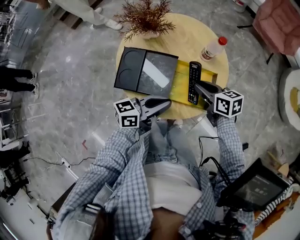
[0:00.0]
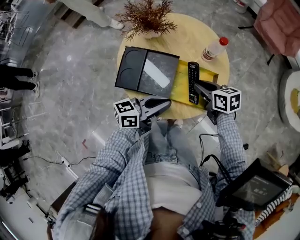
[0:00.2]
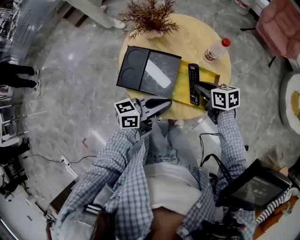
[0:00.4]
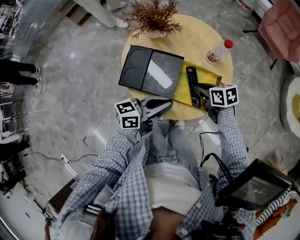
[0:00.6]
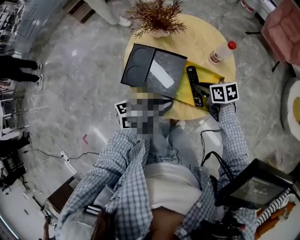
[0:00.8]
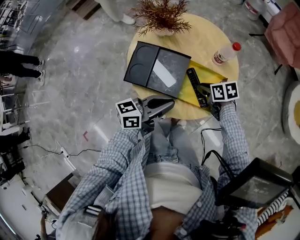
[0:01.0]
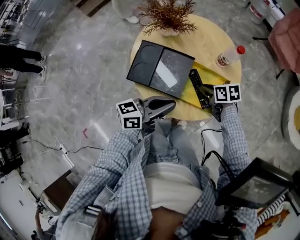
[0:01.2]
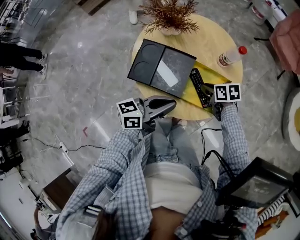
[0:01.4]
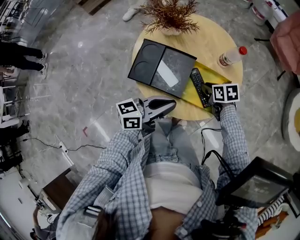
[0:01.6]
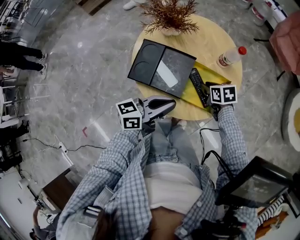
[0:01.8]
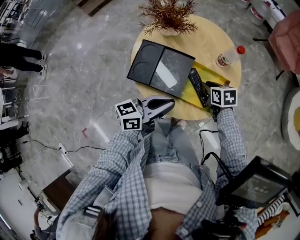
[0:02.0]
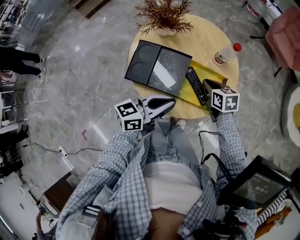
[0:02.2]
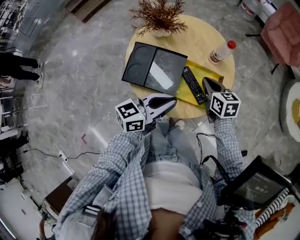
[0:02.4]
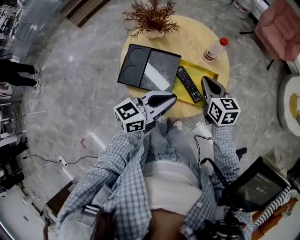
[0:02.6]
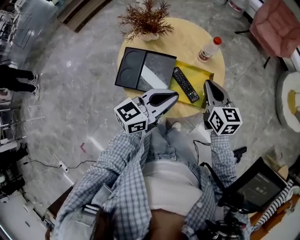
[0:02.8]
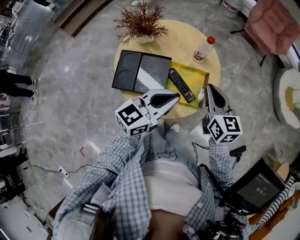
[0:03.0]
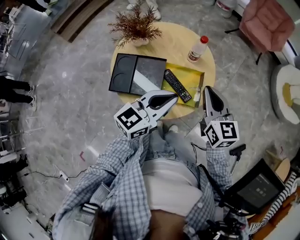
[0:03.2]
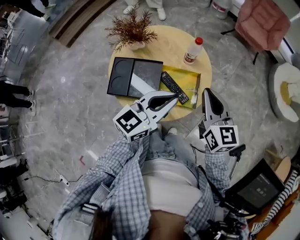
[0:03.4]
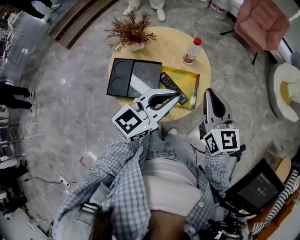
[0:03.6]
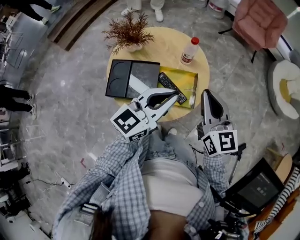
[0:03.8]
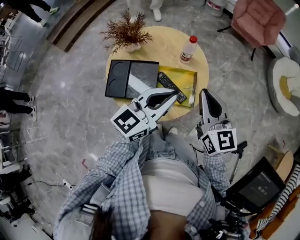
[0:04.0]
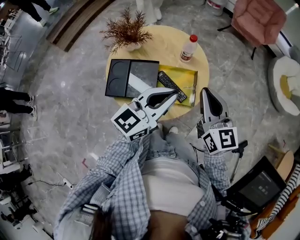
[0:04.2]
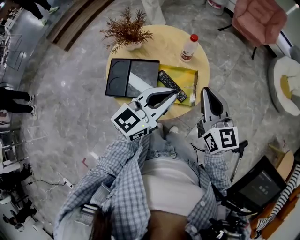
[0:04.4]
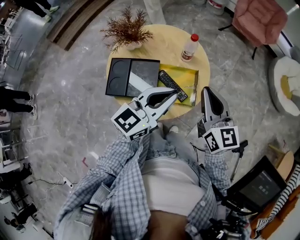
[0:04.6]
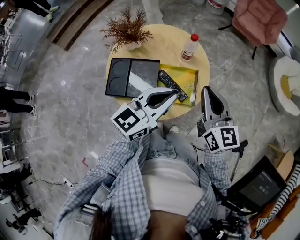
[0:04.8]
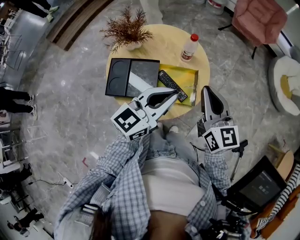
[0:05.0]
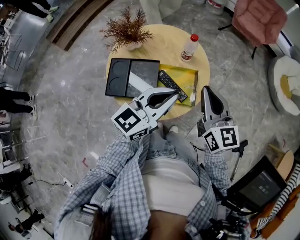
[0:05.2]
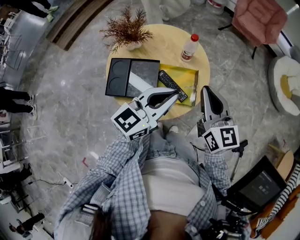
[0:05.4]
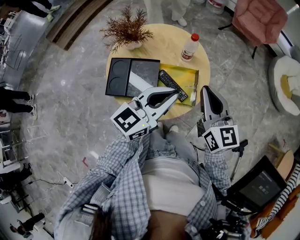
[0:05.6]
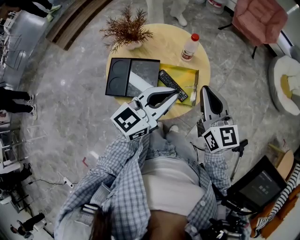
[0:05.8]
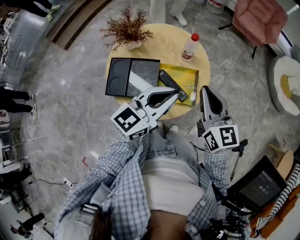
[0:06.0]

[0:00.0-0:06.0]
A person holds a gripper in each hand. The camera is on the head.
0.0 to 1.6 s: The right gripper shifts approximately 10 cm downward, and turns by approximately 20 degrees.
1.6 to 3.0 s: The left gripper shifts roughly 10 cm upward, and changes its angle by approximately 30 degrees; the right gripper heads upward, covering about 20 cm, angles its fingers upward, by roughly 30 degrees, and closes.
3.0 to 4.4 s: The right gripper travels upward by about 5 cm.
4.4 to 6.0 s: The two grippers keep their place.

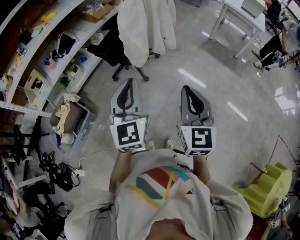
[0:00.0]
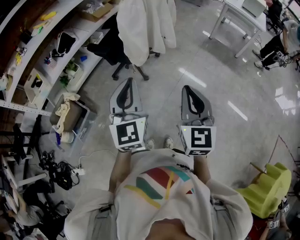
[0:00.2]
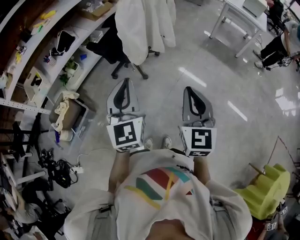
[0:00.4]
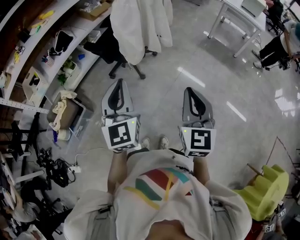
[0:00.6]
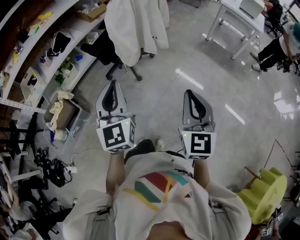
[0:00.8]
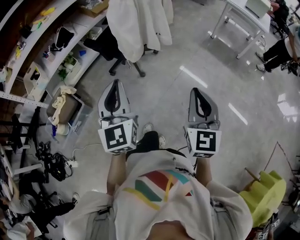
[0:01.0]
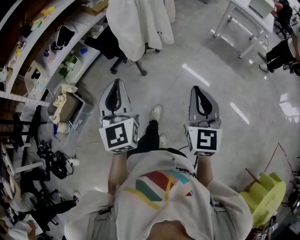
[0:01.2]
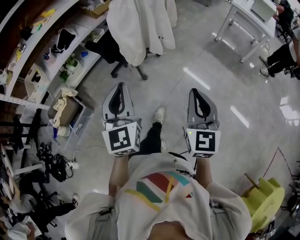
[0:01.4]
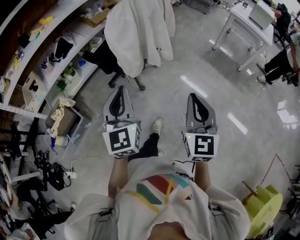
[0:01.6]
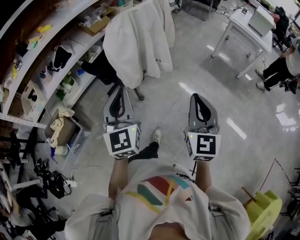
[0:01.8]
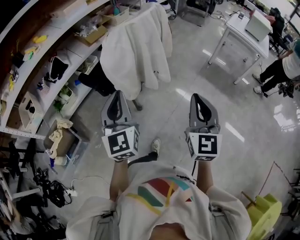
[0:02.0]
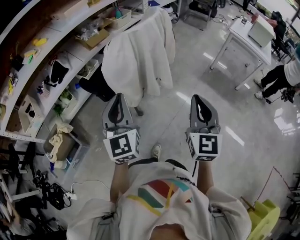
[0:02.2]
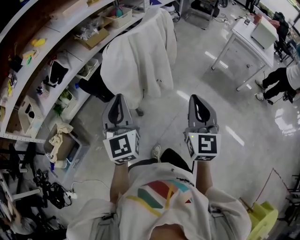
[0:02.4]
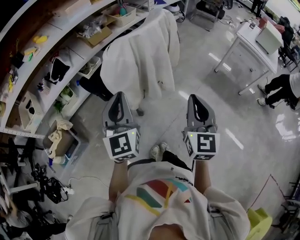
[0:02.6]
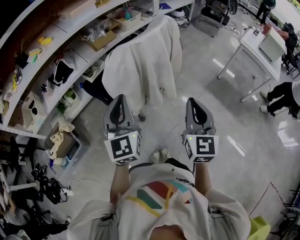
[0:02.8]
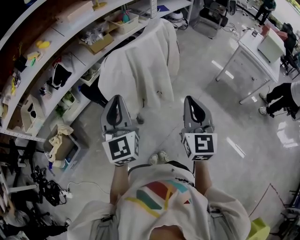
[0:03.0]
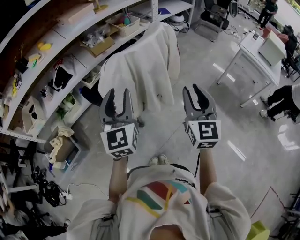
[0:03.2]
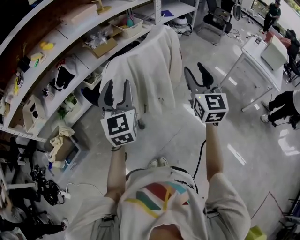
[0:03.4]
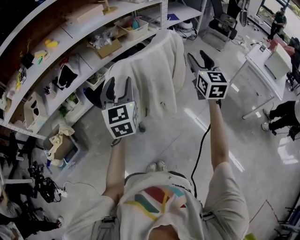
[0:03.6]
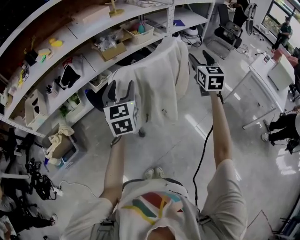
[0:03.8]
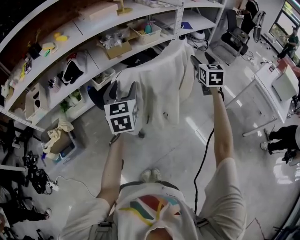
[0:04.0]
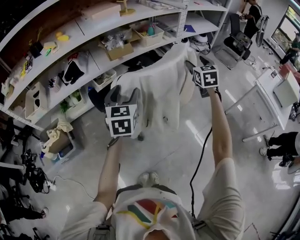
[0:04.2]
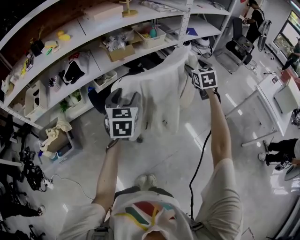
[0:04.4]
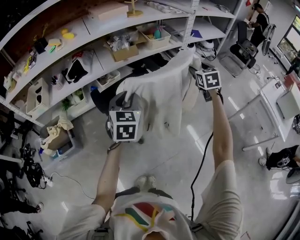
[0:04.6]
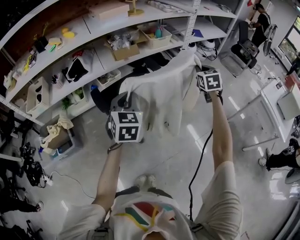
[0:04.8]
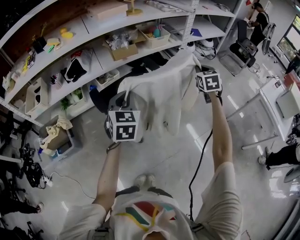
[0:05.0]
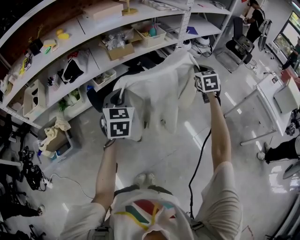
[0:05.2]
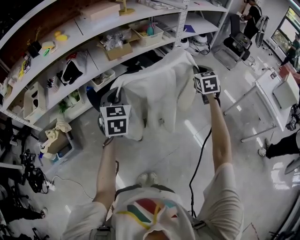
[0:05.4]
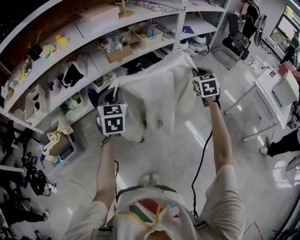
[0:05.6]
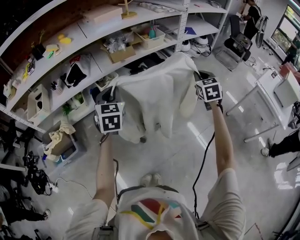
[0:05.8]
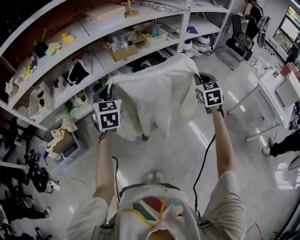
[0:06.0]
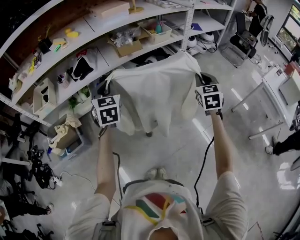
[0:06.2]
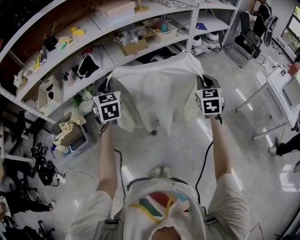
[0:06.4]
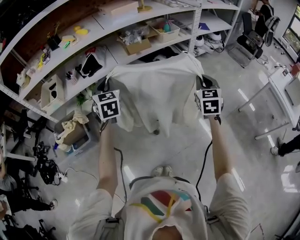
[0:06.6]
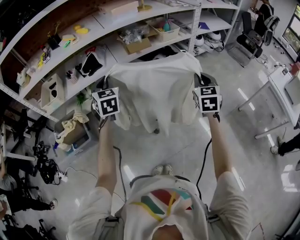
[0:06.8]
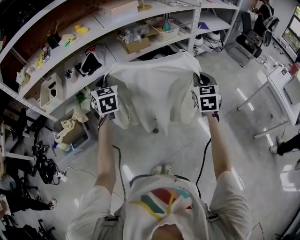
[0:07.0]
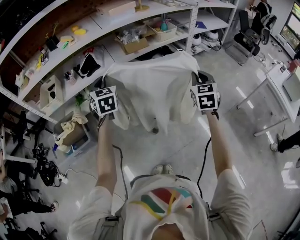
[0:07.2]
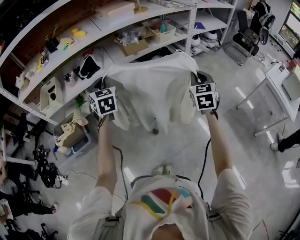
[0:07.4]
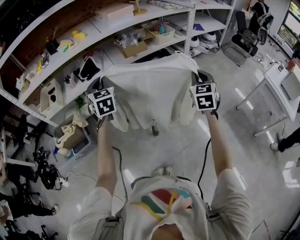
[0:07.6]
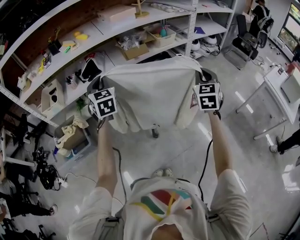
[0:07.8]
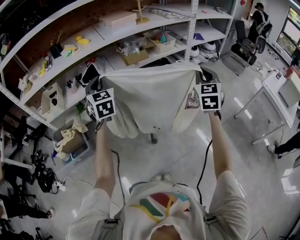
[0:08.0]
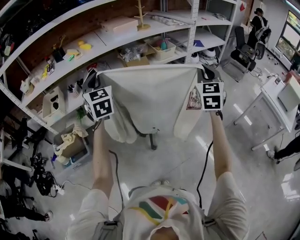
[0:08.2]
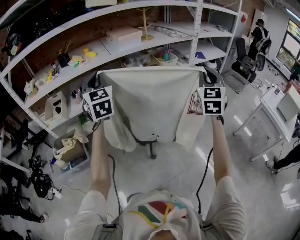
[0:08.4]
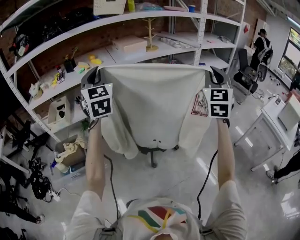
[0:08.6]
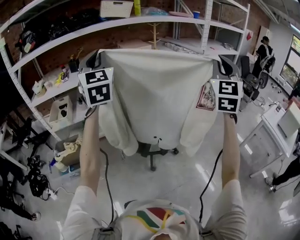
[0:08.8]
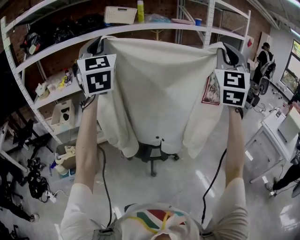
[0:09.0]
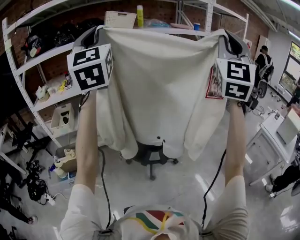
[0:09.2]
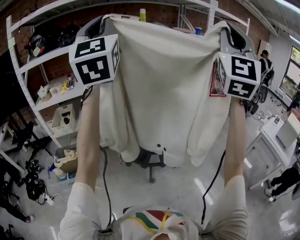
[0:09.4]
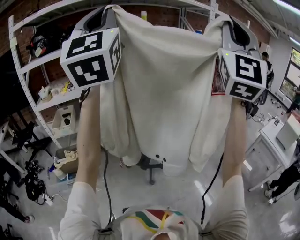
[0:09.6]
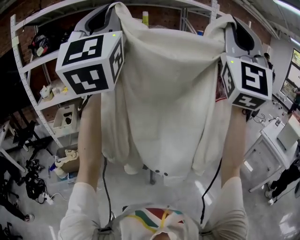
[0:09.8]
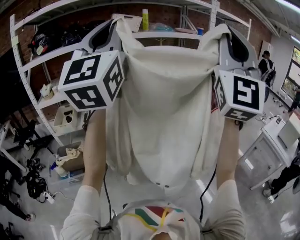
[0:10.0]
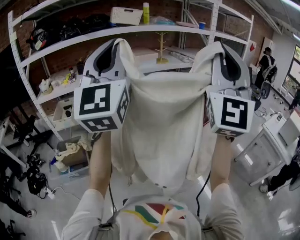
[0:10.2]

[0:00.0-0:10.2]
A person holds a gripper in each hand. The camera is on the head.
0.0 to 1.4 s: The right gripper is displaced to the right by some 10 cm. Meanwhile the left gripper moves to the right, approximately 5 cm.
1.4 to 3.0 s: The grippers both shift forward by approximately 30 cm.
3.0 to 4.4 s: The left gripper travels forward by some 20 cm, turns by some 30 degrees, and opens; the right gripper is displaced forward by roughly 40 cm, changes its angle by approximately 30 degrees, and opens its fingers.
4.4 to 5.8 s: The right gripper heads backward, covering approximately 5 cm, and closes; the left gripper goes about 5 cm to the left, and closes up.
5.8 to 7.2 s: The right gripper is displaced to the left and backward by about 15 cm; the left gripper goes roughly 15 cm to the left.
7.2 to 8.8 s: The grippers both shift upward by approximately 35 cm. The left gripper tilts its fingers some 30 degrees upward. Meanwhile the right gripper points its fingers roughly 40 degrees further upward.
8.8 to 10.2 s: The left gripper heads backward and upward, covering some 15 cm, and changes its angle by some 30 degrees. Meanwhile the right gripper moves backward, to the left and upward, roughly 20 cm, and turns by approximately 30 degrees.

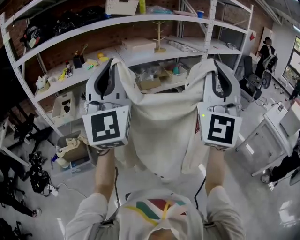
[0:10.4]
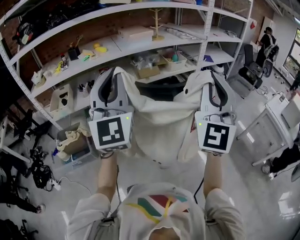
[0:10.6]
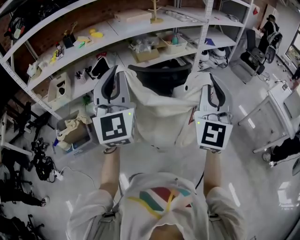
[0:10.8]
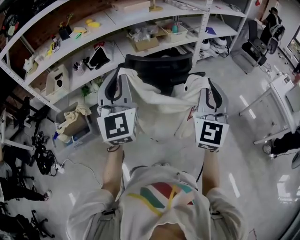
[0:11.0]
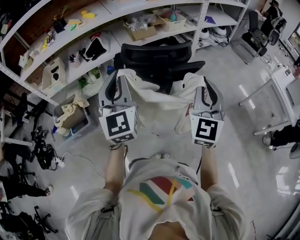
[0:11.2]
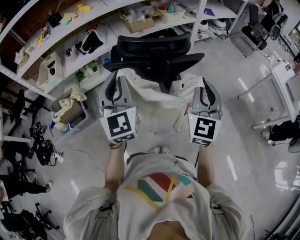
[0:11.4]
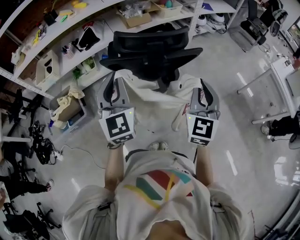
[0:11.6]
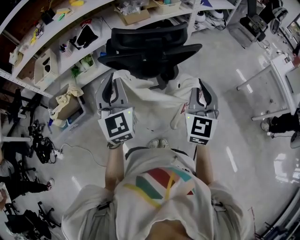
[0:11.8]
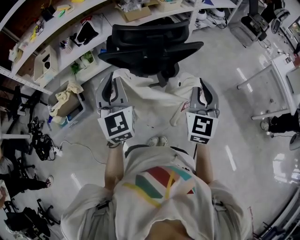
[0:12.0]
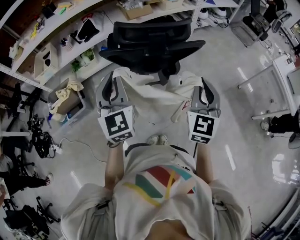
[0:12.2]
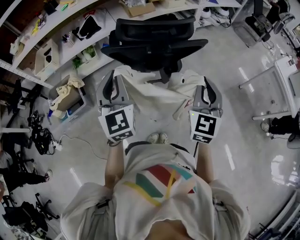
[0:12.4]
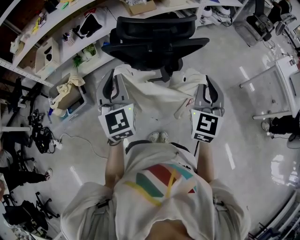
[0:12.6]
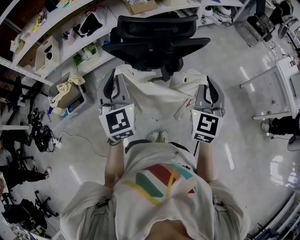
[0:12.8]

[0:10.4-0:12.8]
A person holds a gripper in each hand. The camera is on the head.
10.4 to 11.6 s: The grippers both shift downward by some 30 cm. The left gripper swivels some 30 degrees; the right gripper points its fingers some 40 degrees further downward.
11.6 to 12.8 s: There are only small adjustments of the grippers.

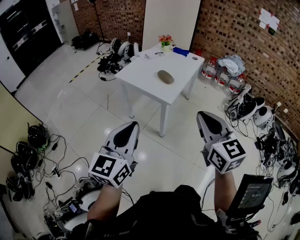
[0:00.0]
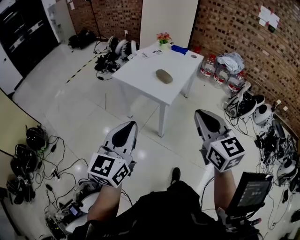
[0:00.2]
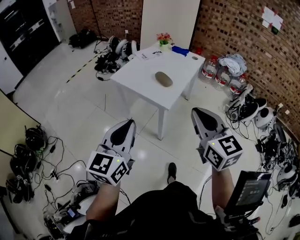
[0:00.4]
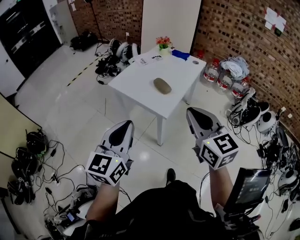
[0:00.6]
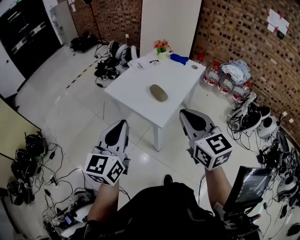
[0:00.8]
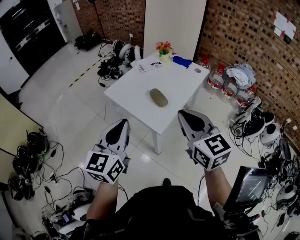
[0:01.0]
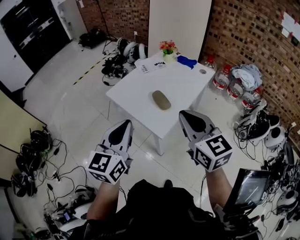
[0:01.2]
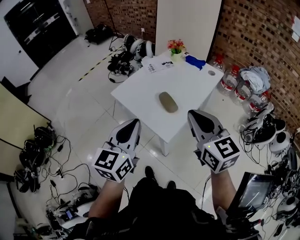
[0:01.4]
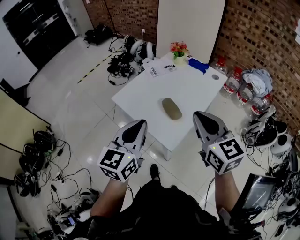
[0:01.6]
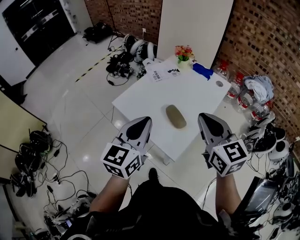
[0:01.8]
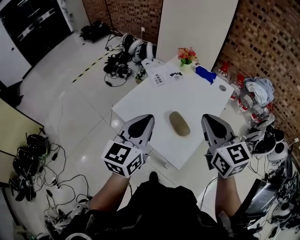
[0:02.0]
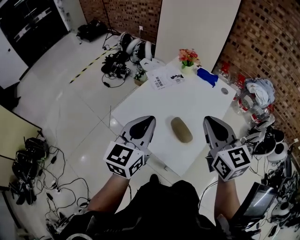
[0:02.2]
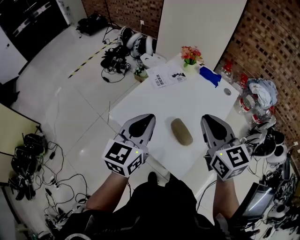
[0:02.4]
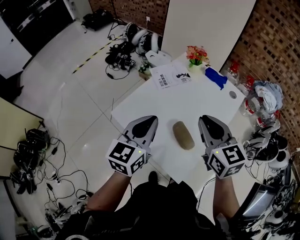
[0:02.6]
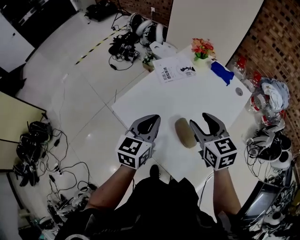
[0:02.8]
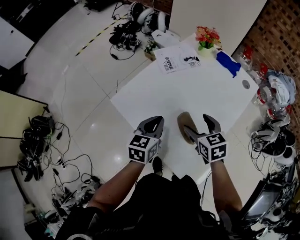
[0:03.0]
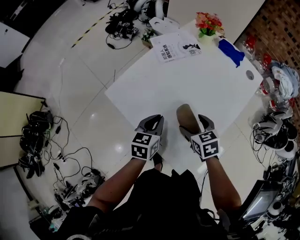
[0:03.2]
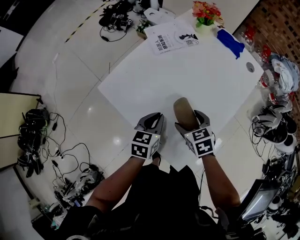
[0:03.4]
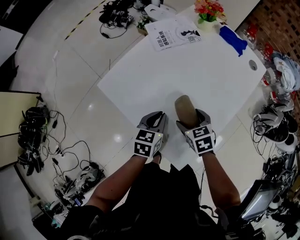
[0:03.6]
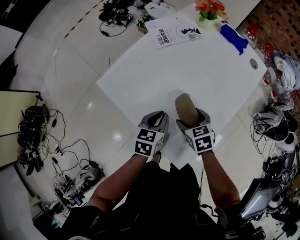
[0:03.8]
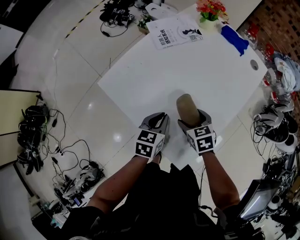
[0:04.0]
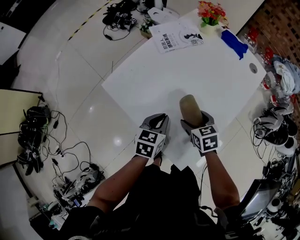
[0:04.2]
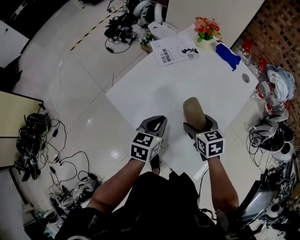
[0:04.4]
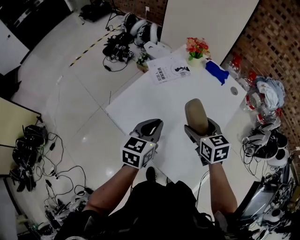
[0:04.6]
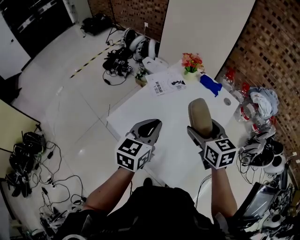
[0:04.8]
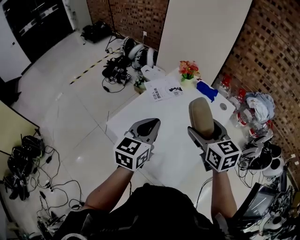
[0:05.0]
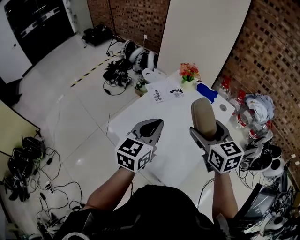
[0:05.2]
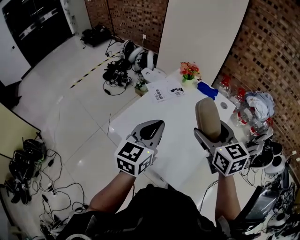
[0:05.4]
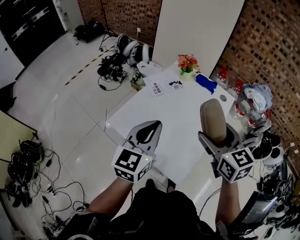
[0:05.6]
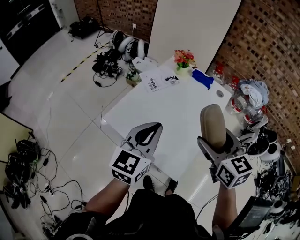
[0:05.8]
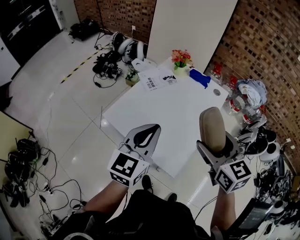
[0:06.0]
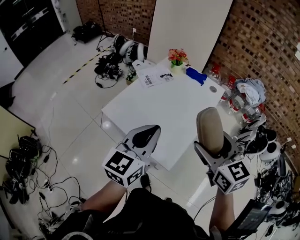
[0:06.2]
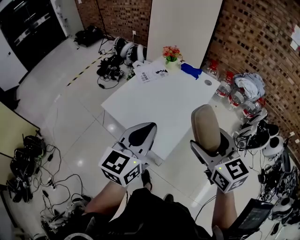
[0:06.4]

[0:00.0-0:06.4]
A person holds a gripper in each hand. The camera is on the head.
0.0 to 1.6 s: The pair of grippers is taken forward, approximately 40 cm.
1.6 to 3.2 s: The two grippers go about 40 cm downward and forward. The left gripper rotates roughly 30 degrees. Meanwhile the right gripper points its fingers roughly 40 degrees further downward, and opens.
3.2 to 4.8 s: Both grippers move upward, some 20 cm. The right gripper rotates approximately 20 degrees; the left gripper swivels approximately 20 degrees.
4.8 to 6.4 s: The right gripper goes roughly 25 cm backward. Meanwhile the left gripper is displaced backward, upward and to the right by approximately 25 cm.
